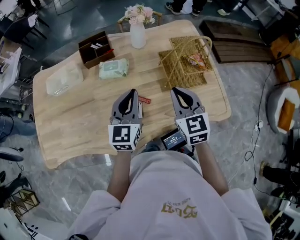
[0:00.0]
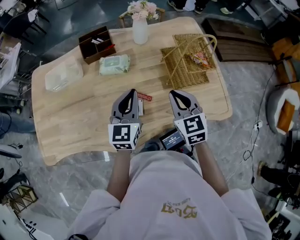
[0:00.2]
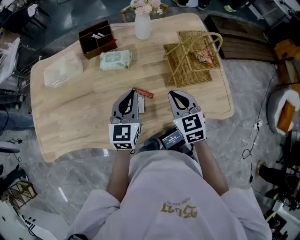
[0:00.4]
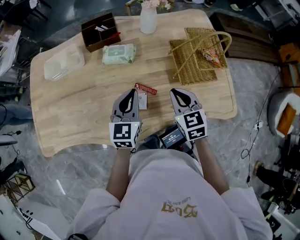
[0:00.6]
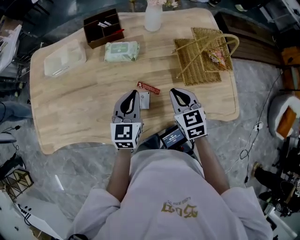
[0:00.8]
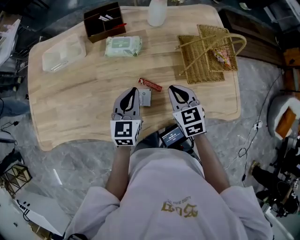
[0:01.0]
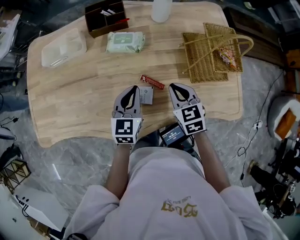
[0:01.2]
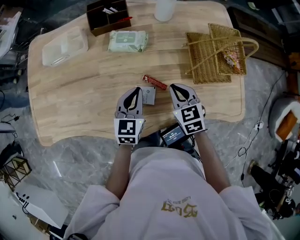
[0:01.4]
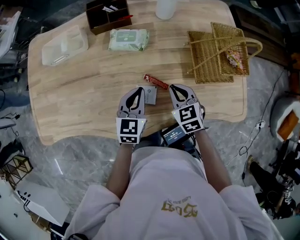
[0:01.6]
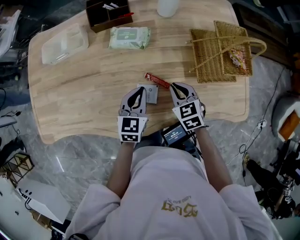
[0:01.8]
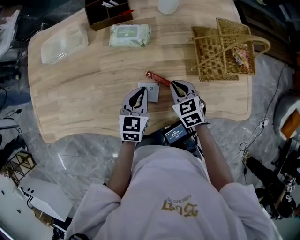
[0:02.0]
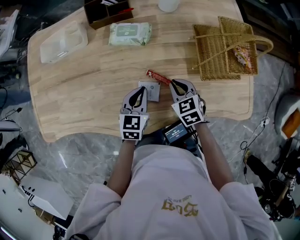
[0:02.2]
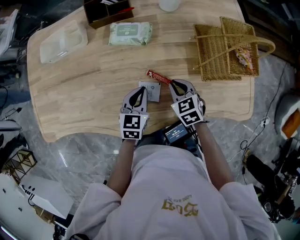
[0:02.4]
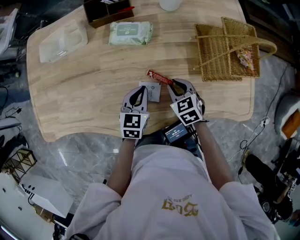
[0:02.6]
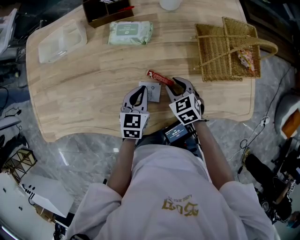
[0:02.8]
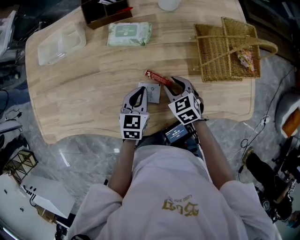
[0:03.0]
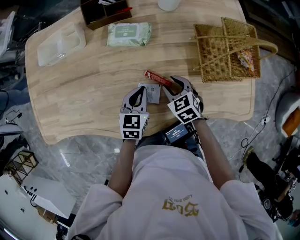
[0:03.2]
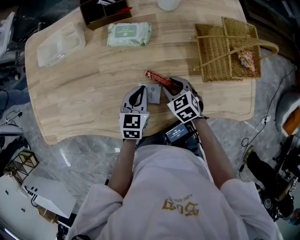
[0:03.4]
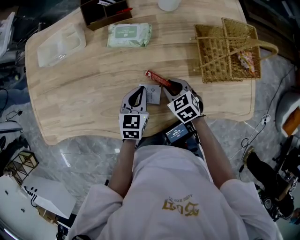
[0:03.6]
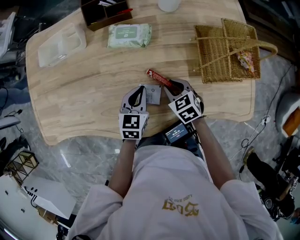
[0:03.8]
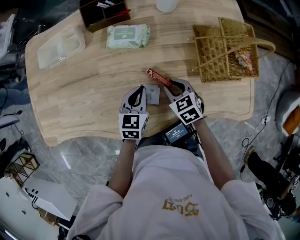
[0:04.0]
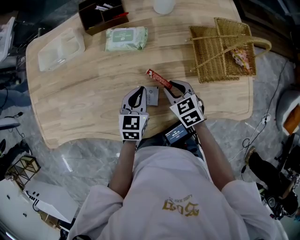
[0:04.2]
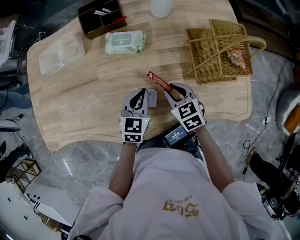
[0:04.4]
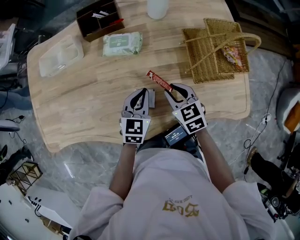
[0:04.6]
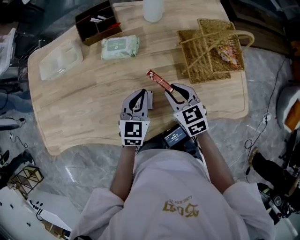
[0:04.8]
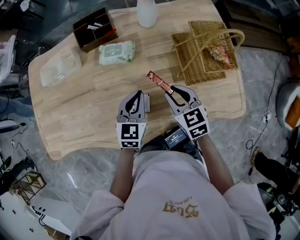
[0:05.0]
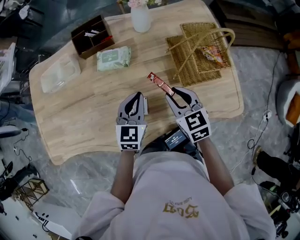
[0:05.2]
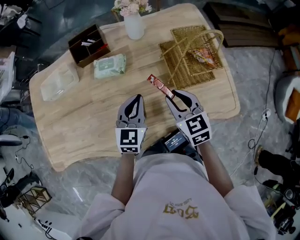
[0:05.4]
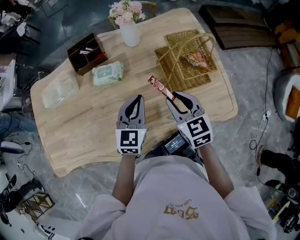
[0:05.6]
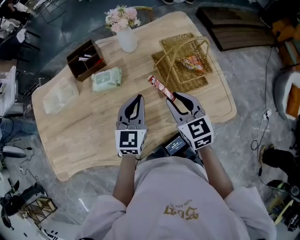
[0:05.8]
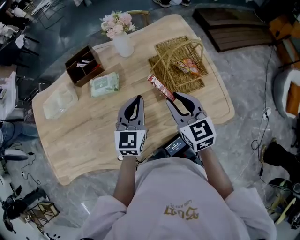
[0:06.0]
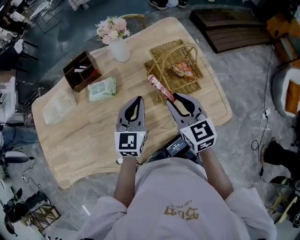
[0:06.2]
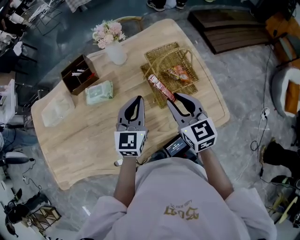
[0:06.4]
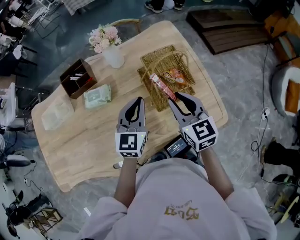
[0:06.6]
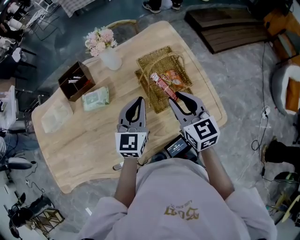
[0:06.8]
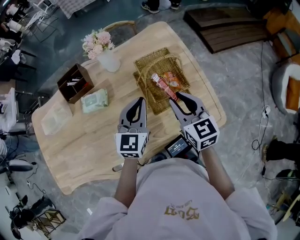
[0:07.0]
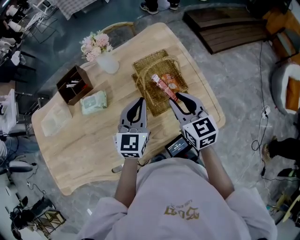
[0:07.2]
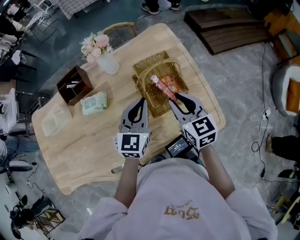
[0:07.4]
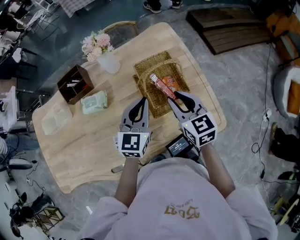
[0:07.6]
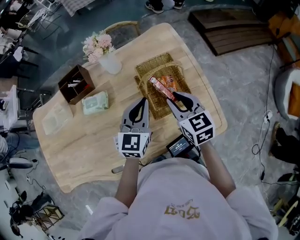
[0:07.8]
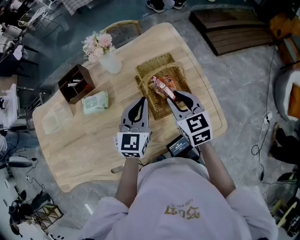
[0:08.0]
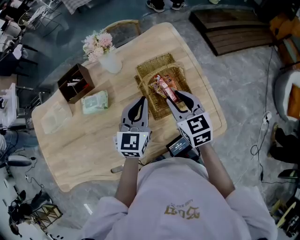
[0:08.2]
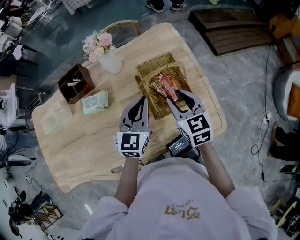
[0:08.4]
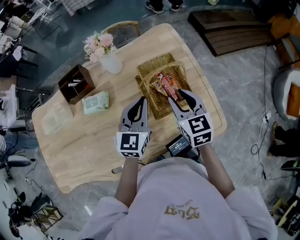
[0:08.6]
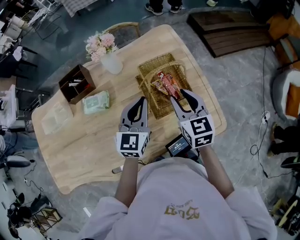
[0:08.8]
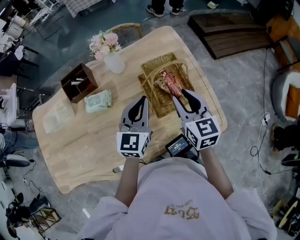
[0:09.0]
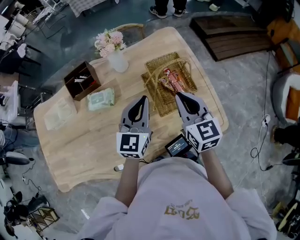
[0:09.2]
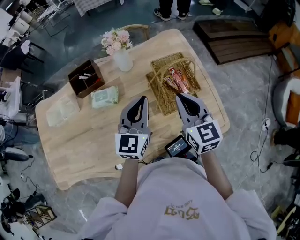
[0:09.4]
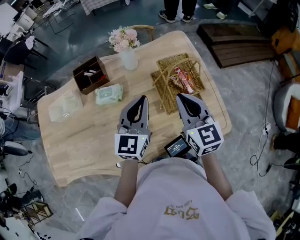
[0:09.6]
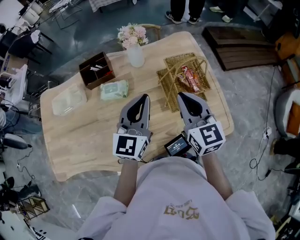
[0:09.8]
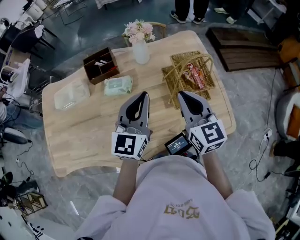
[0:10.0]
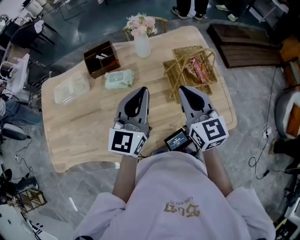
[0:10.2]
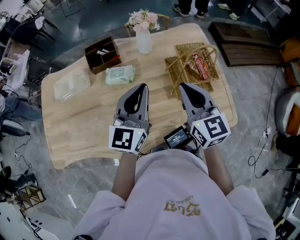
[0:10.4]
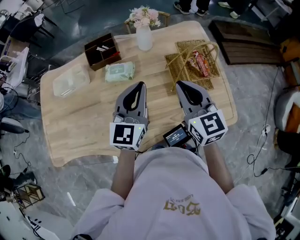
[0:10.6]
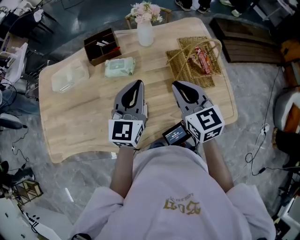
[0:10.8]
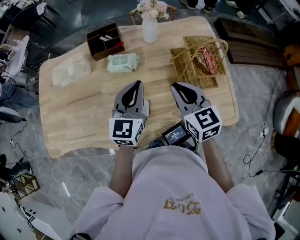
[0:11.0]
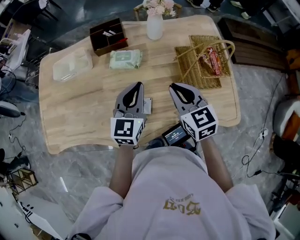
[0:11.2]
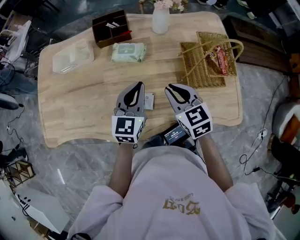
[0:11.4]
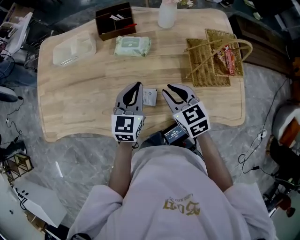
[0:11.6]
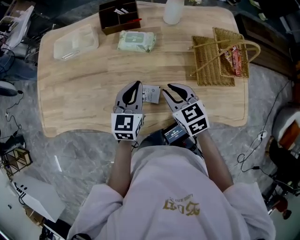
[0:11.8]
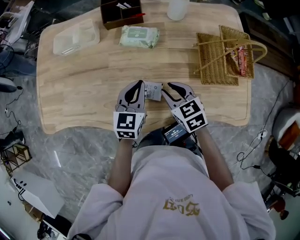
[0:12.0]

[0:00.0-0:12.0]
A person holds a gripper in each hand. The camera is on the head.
0:00.0 to 0:01.6: The right gripper shifts about 20 cm downward and to the left, and swivels some 30 degrees, while the left gripper shifts roughly 15 cm downward.
0:01.6 to 0:03.0: Both grippers move downward, roughly 5 cm. The right gripper opens up.
0:03.0 to 0:04.4: The grippers make only small movements.
0:04.4 to 0:06.0: Both grippers move upward and to the right, about 20 cm. The right gripper changes its angle by some 30 degrees.
0:06.0 to 0:07.6: Both grippers move to the right and forward, some 15 cm.
0:07.6 to 0:09.0: The grippers stay close to where they were, moving slightly.
0:09.0 to 0:10.4: Both grippers travel together to the left, backward and upward, roughly 15 cm. The right gripper closes.
0:10.4 to 0:12.0: Both grippers move downward and to the left, about 25 cm. The left gripper turns by roughly 30 degrees, while the right gripper tips its fingers downward by about 30 degrees, and opens up.

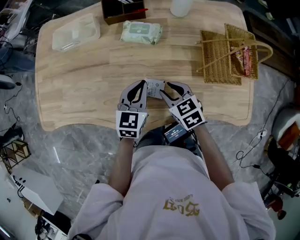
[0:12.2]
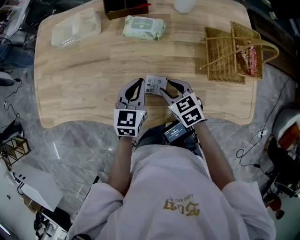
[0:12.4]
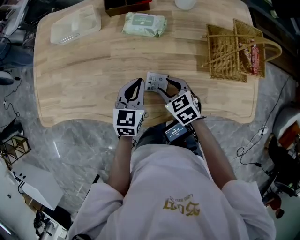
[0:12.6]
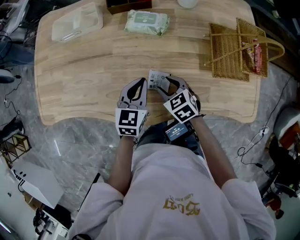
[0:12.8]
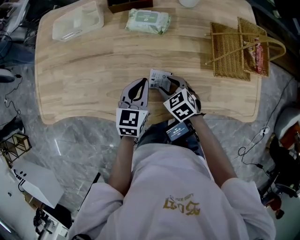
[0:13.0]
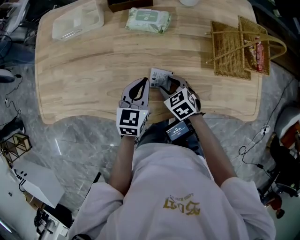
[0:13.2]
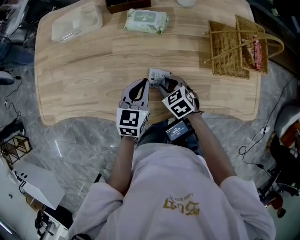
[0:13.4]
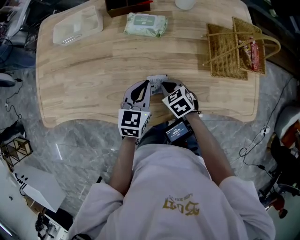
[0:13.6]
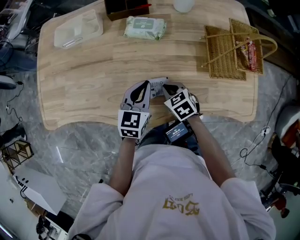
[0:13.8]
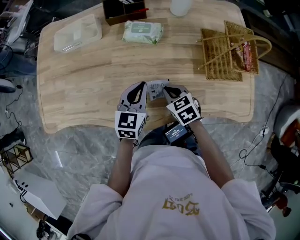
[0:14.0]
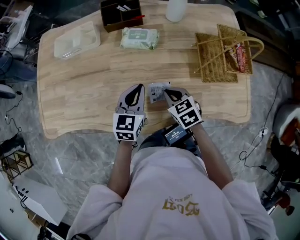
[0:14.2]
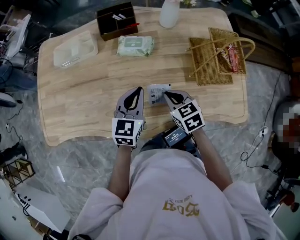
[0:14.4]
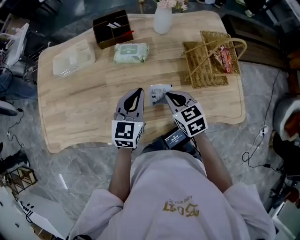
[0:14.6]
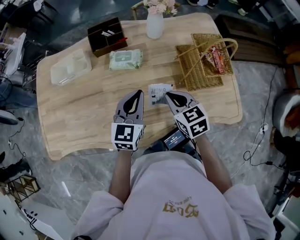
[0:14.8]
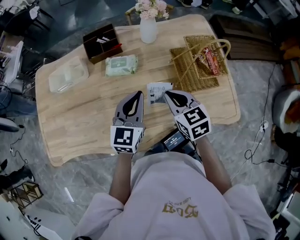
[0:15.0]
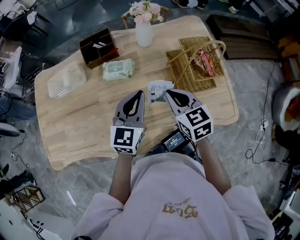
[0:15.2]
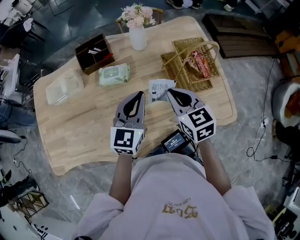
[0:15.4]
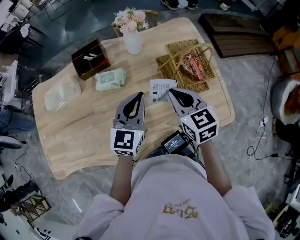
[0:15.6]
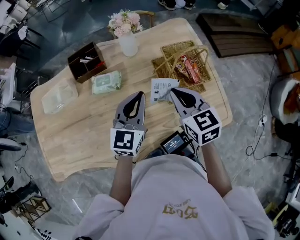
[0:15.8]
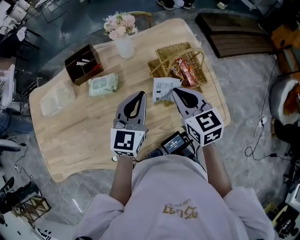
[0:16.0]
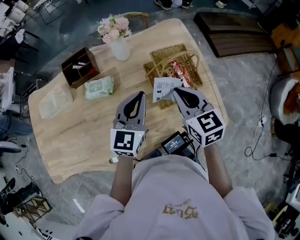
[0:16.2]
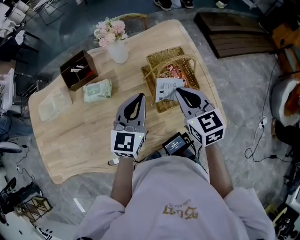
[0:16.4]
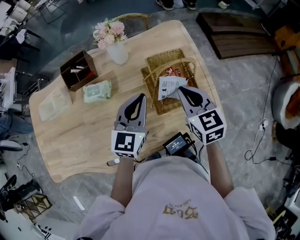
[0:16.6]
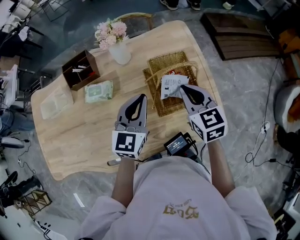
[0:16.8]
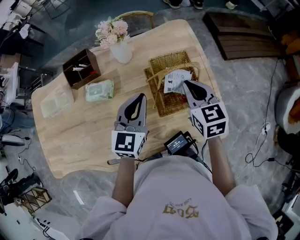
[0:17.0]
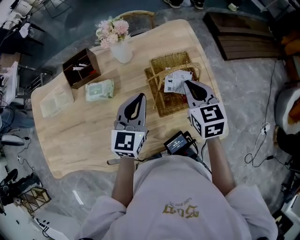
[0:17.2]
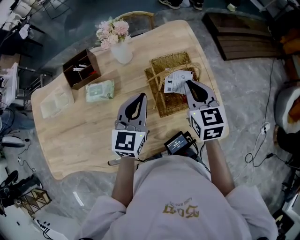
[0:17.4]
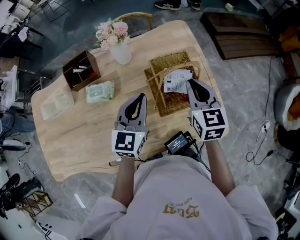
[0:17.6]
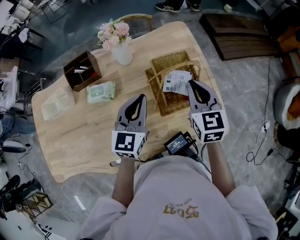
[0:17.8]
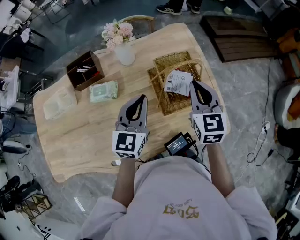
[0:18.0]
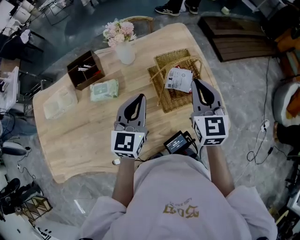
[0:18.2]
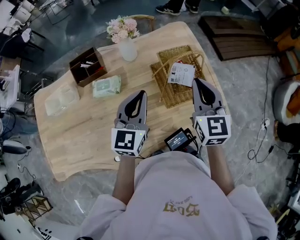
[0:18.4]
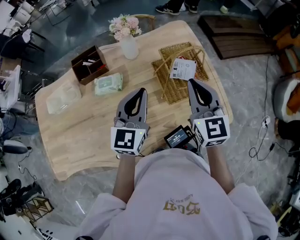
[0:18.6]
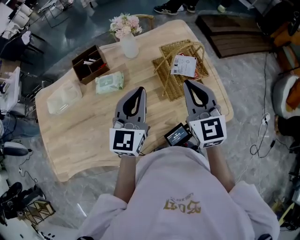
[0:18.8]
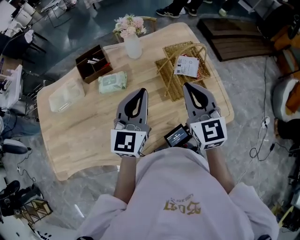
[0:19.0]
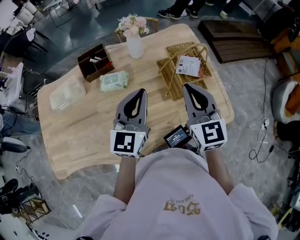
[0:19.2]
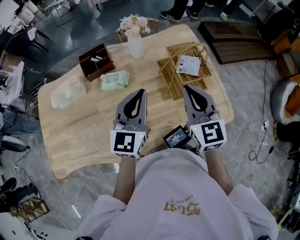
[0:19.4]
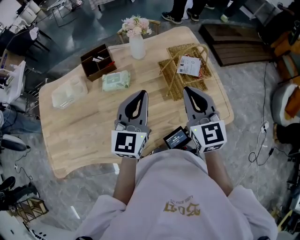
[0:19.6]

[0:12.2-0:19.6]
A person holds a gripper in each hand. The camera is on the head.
0:12.2 to 0:13.6: The right gripper heads downward, covering roughly 10 cm, and closes up.
0:13.6 to 0:15.2: Both grippers move upward and to the right, about 20 cm. The left gripper changes its angle by roughly 20 degrees. The right gripper rotates approximately 30 degrees.
0:15.2 to 0:16.6: The two grippers go approximately 20 cm to the right and forward.
0:16.6 to 0:18.2: The right gripper moves upward, some 5 cm, and swivels about 20 degrees.
0:18.2 to 0:19.6: The left gripper goes some 10 cm backward, upward and to the left. The right gripper goes roughly 15 cm backward and to the left.

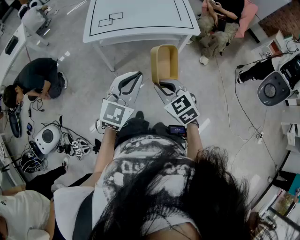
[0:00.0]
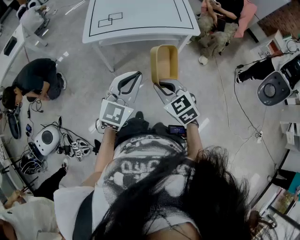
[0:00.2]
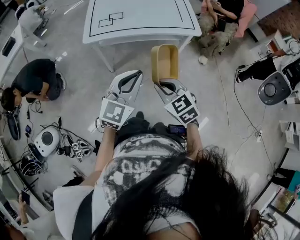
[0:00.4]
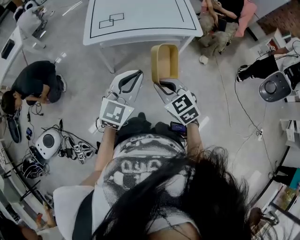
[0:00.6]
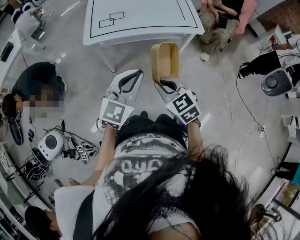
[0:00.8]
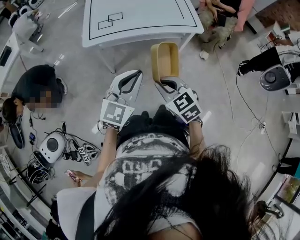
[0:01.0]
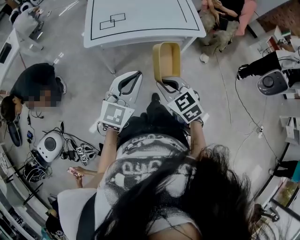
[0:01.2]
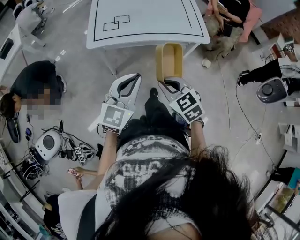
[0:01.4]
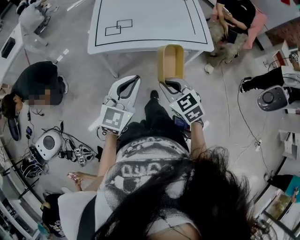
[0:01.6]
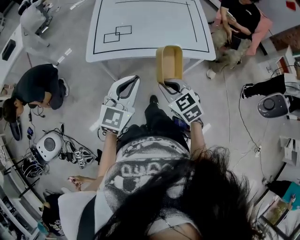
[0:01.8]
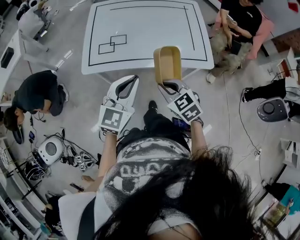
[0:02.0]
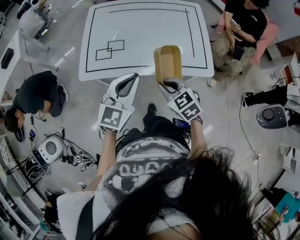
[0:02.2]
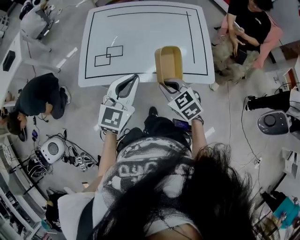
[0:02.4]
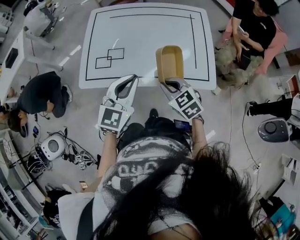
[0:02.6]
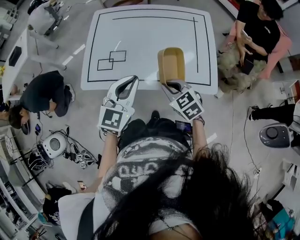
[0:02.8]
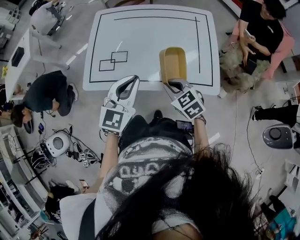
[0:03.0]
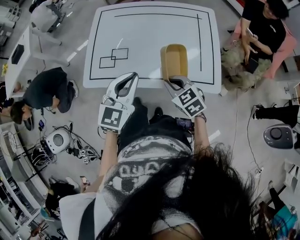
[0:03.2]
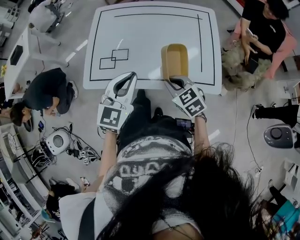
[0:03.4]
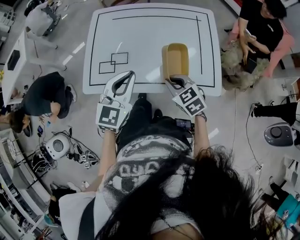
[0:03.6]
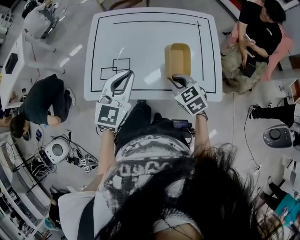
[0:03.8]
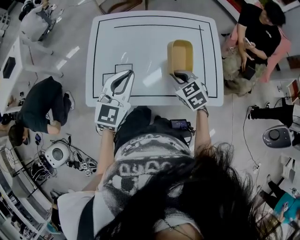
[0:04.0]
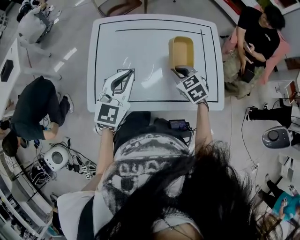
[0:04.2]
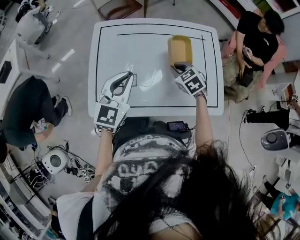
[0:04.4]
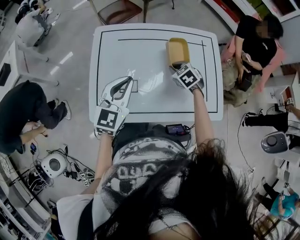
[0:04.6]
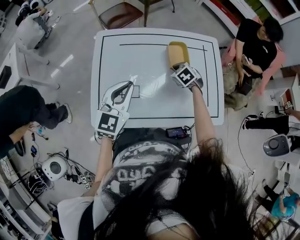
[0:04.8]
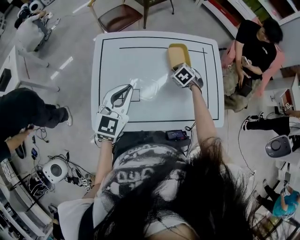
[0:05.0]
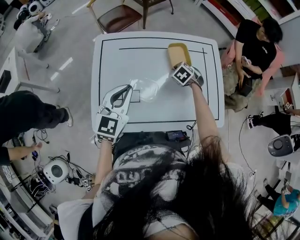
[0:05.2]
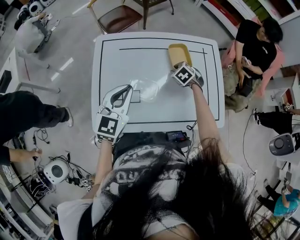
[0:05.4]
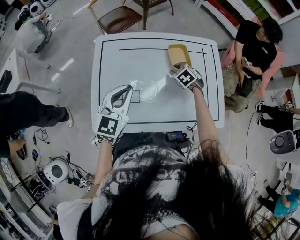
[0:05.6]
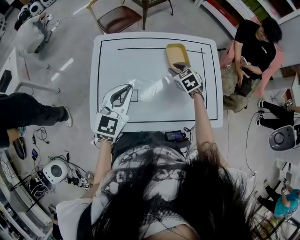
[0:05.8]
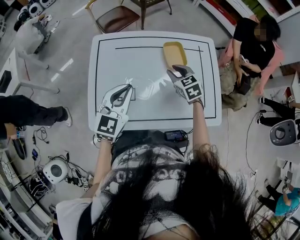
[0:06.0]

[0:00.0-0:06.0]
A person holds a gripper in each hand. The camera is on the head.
0:00.0 to 0:01.6: The right gripper goes approximately 15 cm forward. Meanwhile the left gripper is displaced forward and to the left by some 15 cm.
0:01.6 to 0:03.0: The grippers both shift forward and to the right by roughly 35 cm.
0:03.0 to 0:04.4: The right gripper shifts roughly 25 cm forward; the left gripper goes some 20 cm forward and to the left.
0:04.4 to 0:06.0: The right gripper heads forward, covering about 5 cm, reaches about 10 cm downward, then returns, and opens up.
